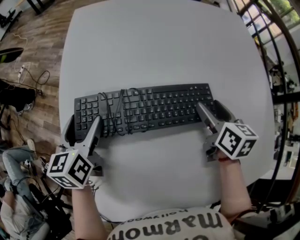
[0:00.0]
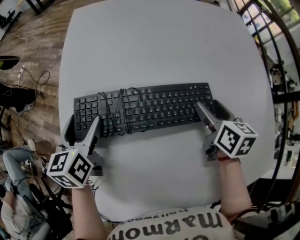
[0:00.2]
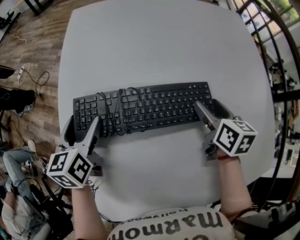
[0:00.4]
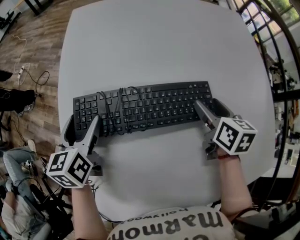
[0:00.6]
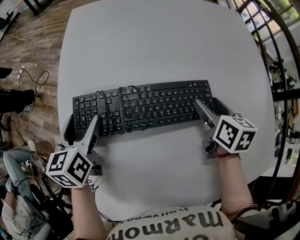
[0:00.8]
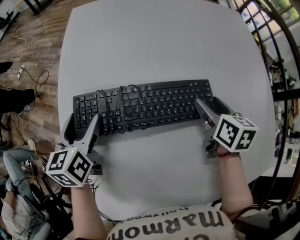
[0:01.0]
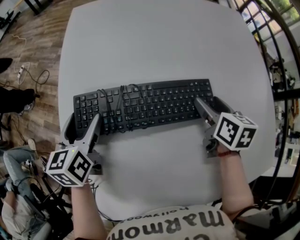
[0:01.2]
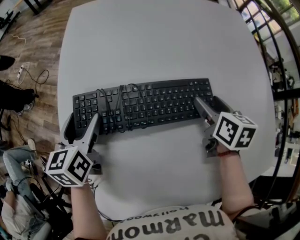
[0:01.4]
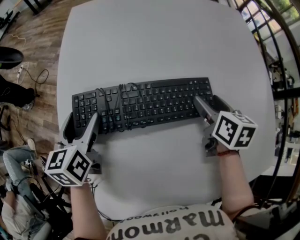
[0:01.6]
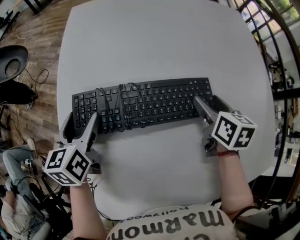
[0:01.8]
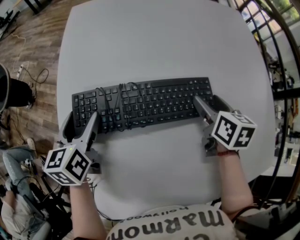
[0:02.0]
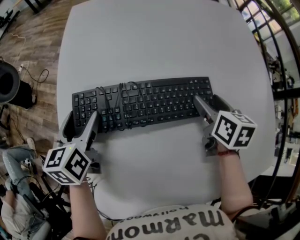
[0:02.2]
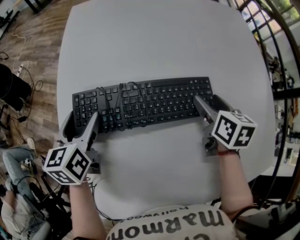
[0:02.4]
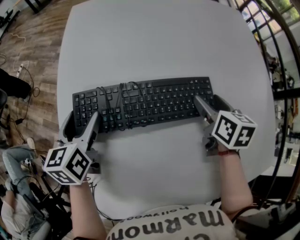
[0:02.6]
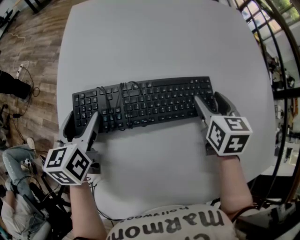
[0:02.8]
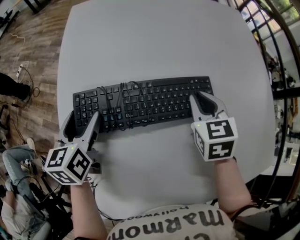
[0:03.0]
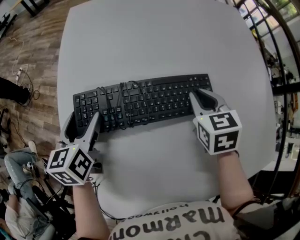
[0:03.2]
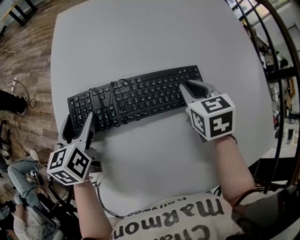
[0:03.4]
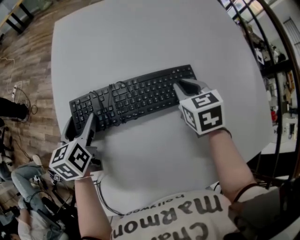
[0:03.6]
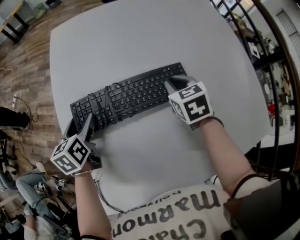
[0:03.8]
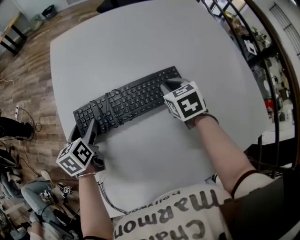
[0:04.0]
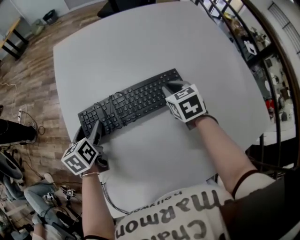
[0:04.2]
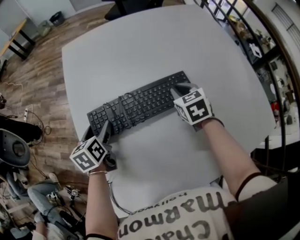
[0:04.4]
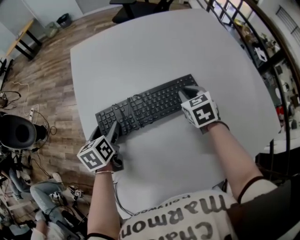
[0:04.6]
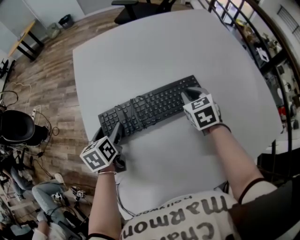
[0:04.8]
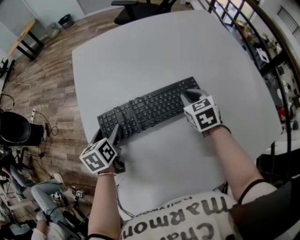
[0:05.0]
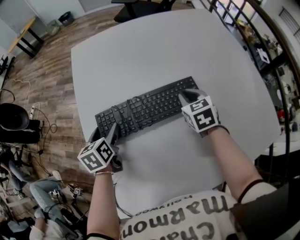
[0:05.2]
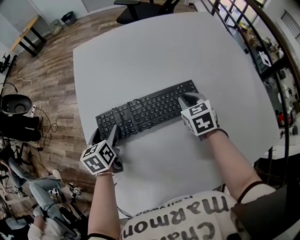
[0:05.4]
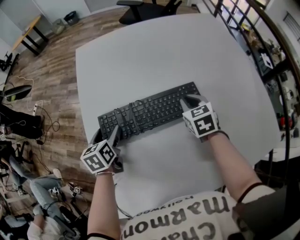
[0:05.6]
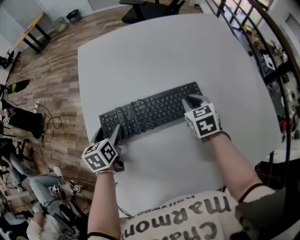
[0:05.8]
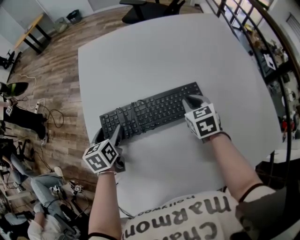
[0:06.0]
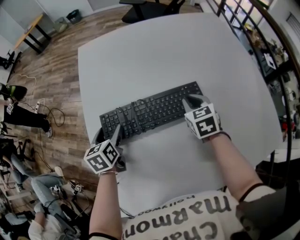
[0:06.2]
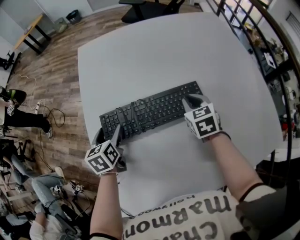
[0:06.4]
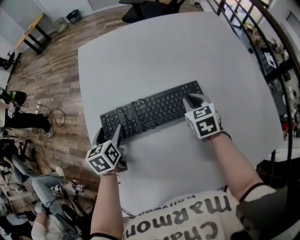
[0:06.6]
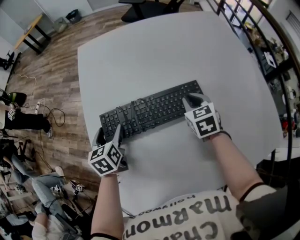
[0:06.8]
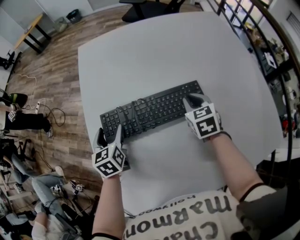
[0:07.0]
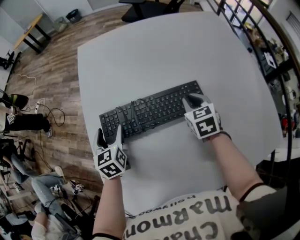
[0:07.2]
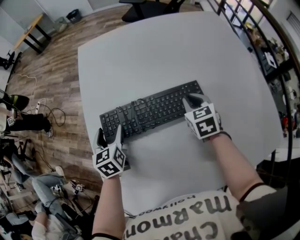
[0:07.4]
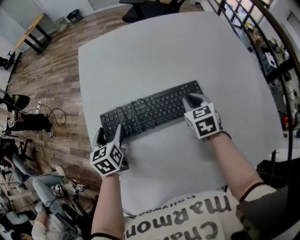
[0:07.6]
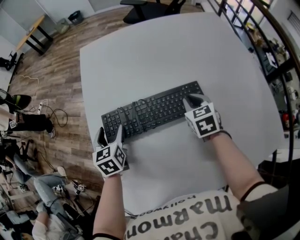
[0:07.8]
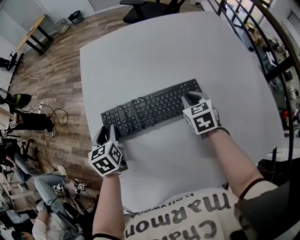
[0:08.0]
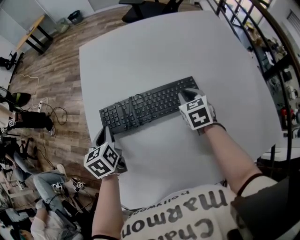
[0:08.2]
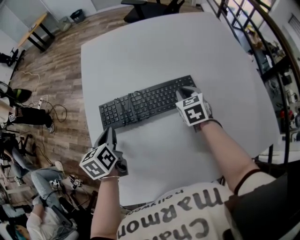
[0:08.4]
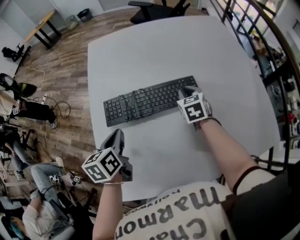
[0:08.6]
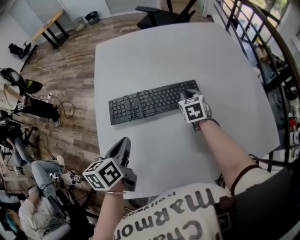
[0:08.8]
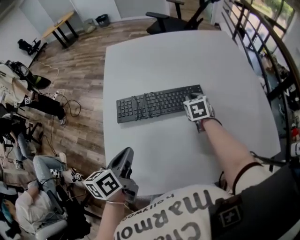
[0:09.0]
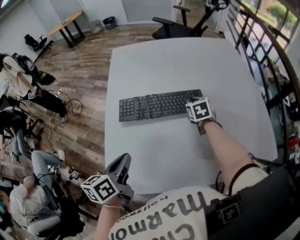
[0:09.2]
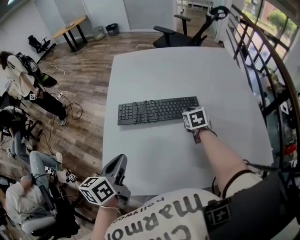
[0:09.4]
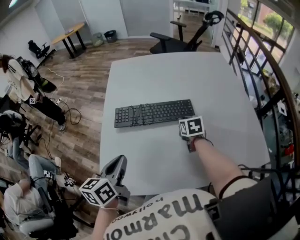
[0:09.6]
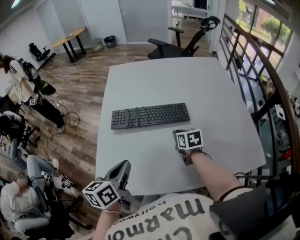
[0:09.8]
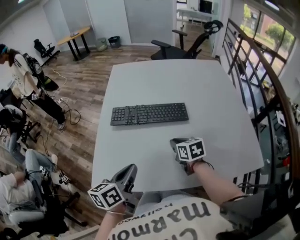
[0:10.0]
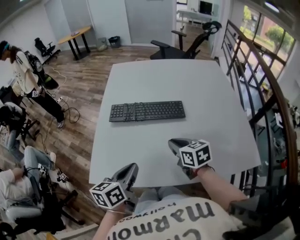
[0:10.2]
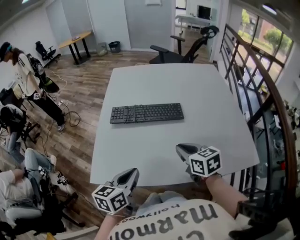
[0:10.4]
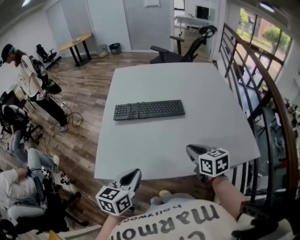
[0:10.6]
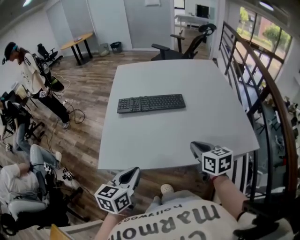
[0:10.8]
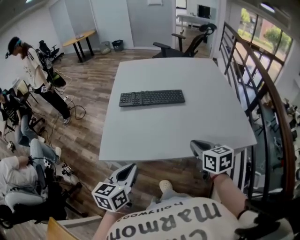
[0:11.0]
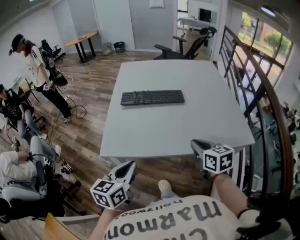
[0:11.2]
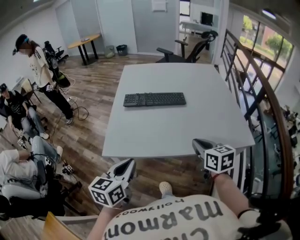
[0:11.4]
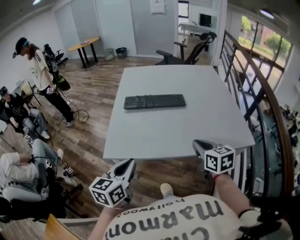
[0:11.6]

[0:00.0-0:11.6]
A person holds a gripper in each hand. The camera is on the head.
0:00.0 to 0:02.8: The grippers stay close to where they were, moving slightly.
0:02.8 to 0:04.4: The right gripper closes up.
0:04.4 to 0:05.8: The two grippers keep their place.
0:05.8 to 0:07.2: The grippers move only a little.
0:07.2 to 0:08.8: The left gripper heads backward, upward and to the right, covering approximately 20 cm, turns by some 30 degrees, and closes up.
0:08.8 to 0:10.2: The right gripper is displaced backward by about 25 cm, and swivels roughly 30 degrees, while the left gripper goes roughly 20 cm backward and to the right.
0:10.2 to 0:11.6: The two grippers go about 20 cm backward and upward.

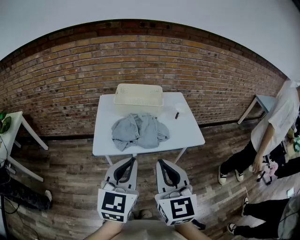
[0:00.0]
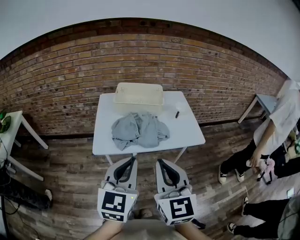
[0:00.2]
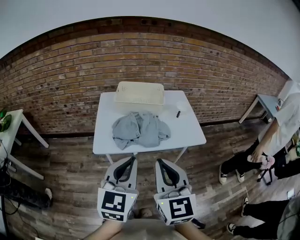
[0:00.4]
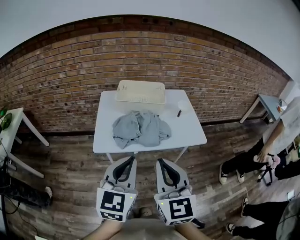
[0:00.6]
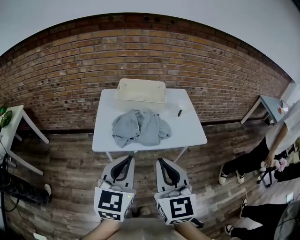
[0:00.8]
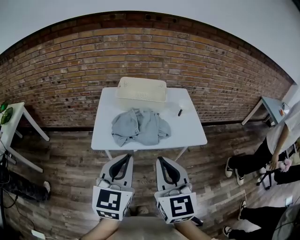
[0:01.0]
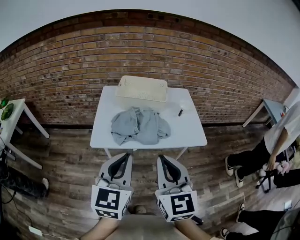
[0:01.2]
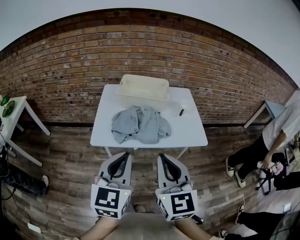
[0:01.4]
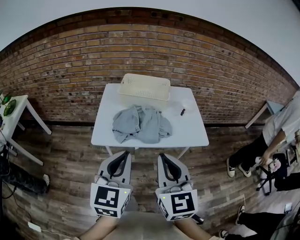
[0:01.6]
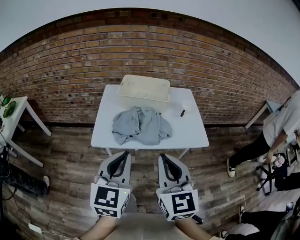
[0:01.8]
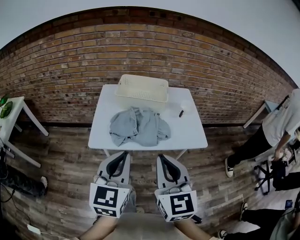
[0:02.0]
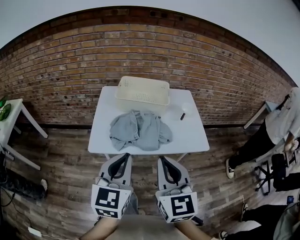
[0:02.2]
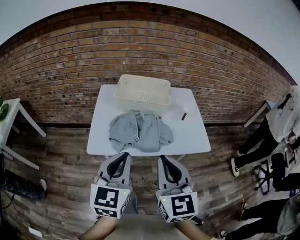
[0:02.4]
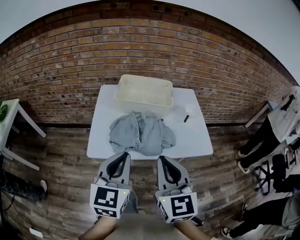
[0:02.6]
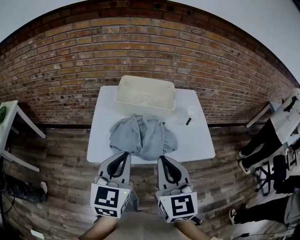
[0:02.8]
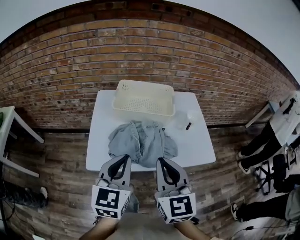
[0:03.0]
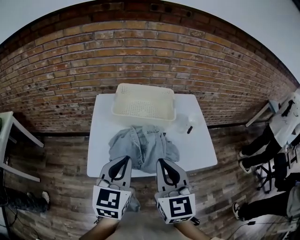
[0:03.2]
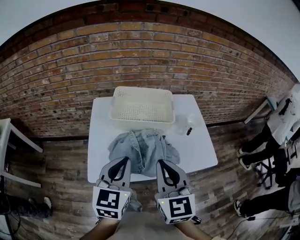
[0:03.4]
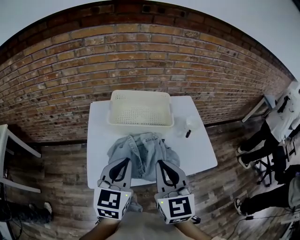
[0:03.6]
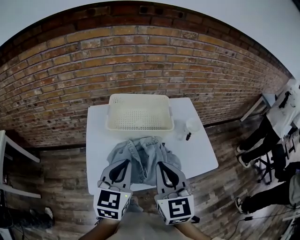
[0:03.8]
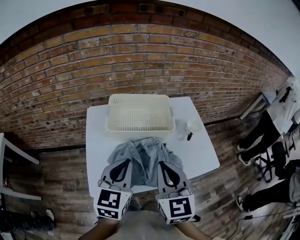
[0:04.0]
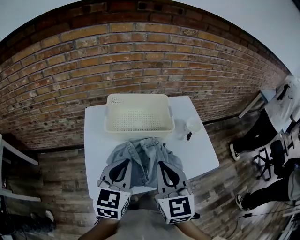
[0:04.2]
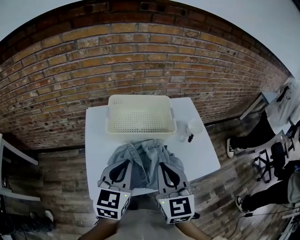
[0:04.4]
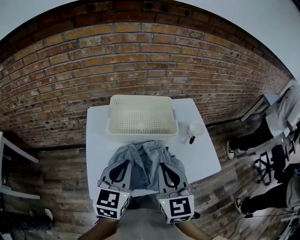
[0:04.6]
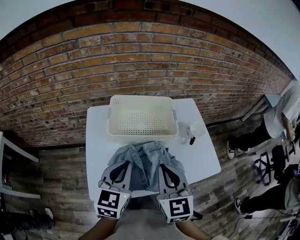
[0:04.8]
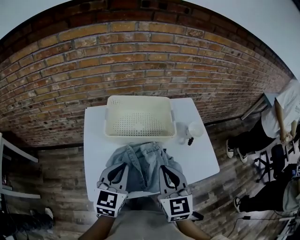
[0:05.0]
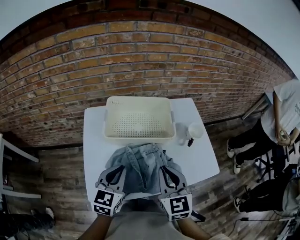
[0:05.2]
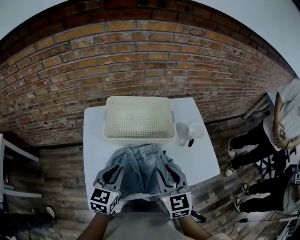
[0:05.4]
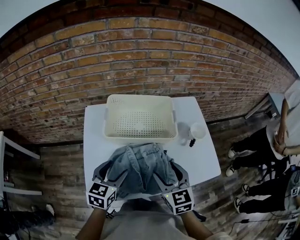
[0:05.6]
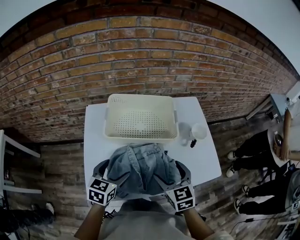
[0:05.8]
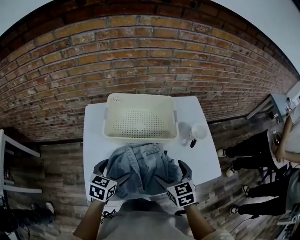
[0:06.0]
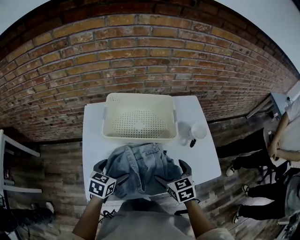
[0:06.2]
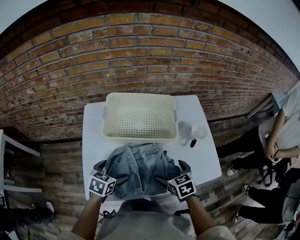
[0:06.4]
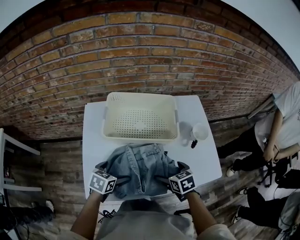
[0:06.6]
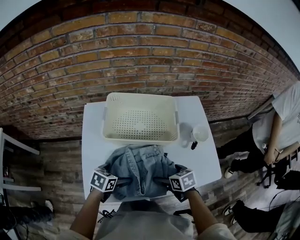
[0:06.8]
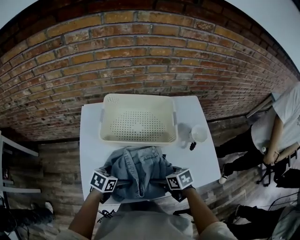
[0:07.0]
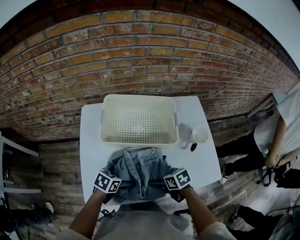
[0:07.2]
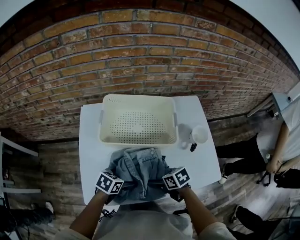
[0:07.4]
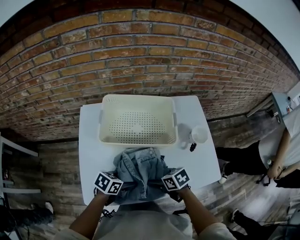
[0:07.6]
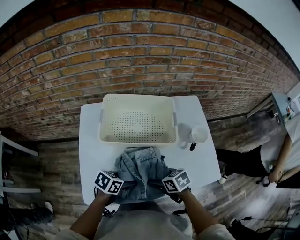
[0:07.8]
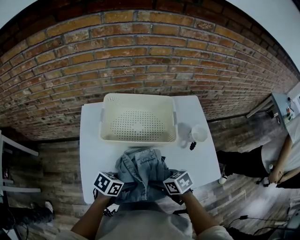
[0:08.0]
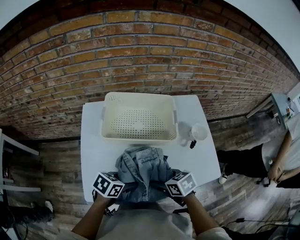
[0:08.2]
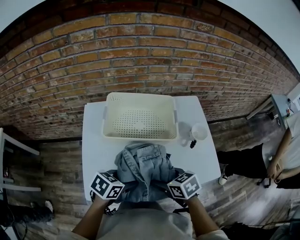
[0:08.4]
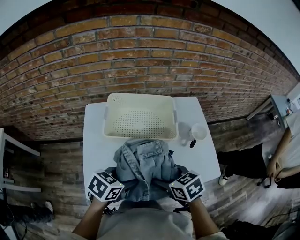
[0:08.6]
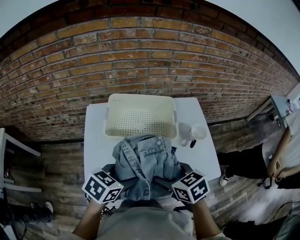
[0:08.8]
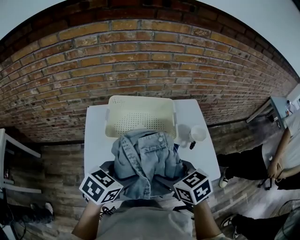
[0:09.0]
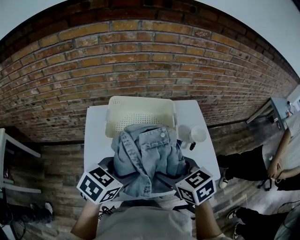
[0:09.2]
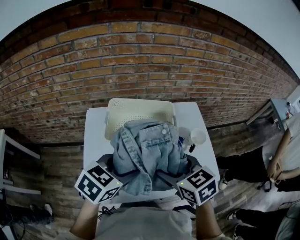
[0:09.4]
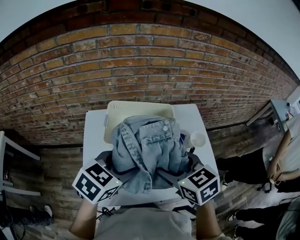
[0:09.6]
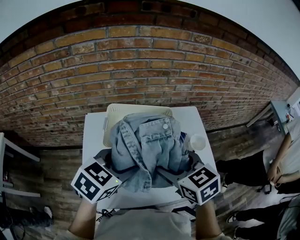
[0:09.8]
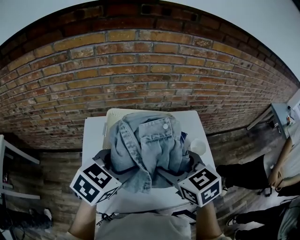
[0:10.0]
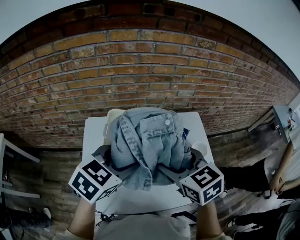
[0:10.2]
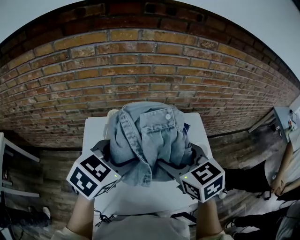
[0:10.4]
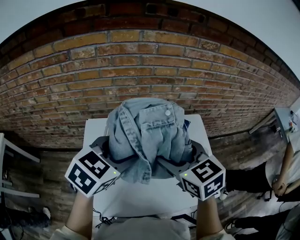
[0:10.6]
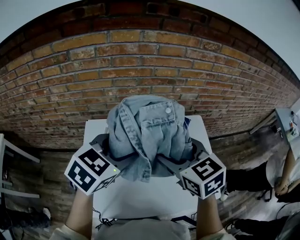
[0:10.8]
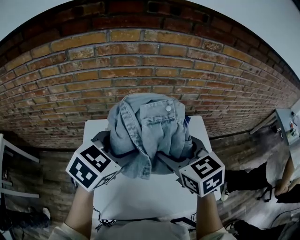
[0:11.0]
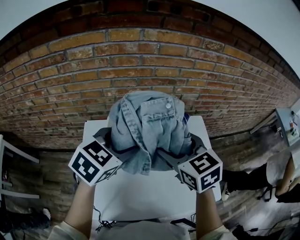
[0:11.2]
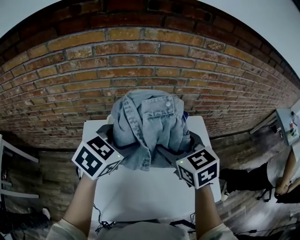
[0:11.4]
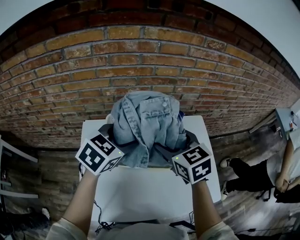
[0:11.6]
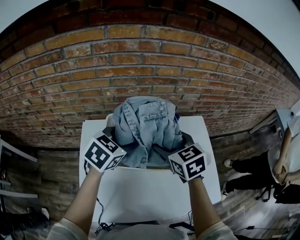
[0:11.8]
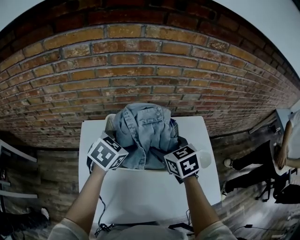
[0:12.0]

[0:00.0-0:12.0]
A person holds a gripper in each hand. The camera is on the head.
0:00.0 to 0:01.6: There are only small adjustments of the grippers.
0:01.6 to 0:03.0: The grippers both shift forward by about 15 cm.
0:03.0 to 0:04.4: Both grippers move forward, some 10 cm.
0:04.4 to 0:06.0: The left gripper goes some 15 cm downward, swivels approximately 30 degrees, and opens up. The right gripper goes approximately 15 cm downward and forward, turns by about 30 degrees, and opens its fingers.
0:06.0 to 0:07.6: Both grippers move downward, about 10 cm. The left gripper changes its angle by roughly 30 degrees, while the right gripper turns by some 40 degrees.
0:07.6 to 0:09.0: Both grippers travel together upward, some 20 cm. The left gripper changes its angle by approximately 20 degrees. Meanwhile the right gripper swivels roughly 30 degrees.
0:09.0 to 0:10.4: The grippers both shift forward and upward by about 15 cm.
0:10.4 to 0:12.0: Both grippers travel together forward and downward, approximately 15 cm.
